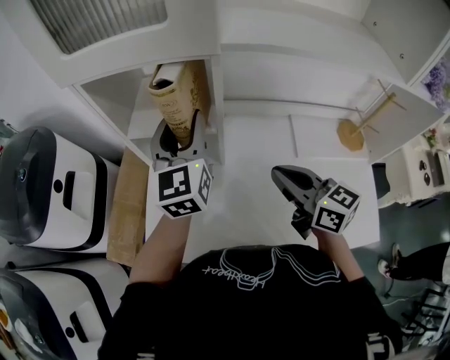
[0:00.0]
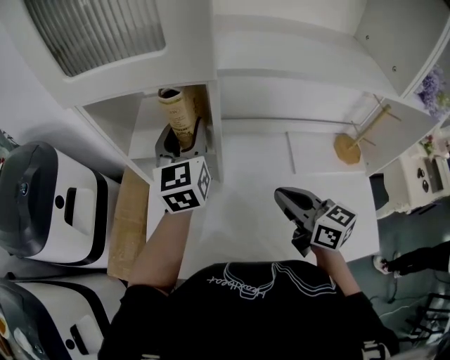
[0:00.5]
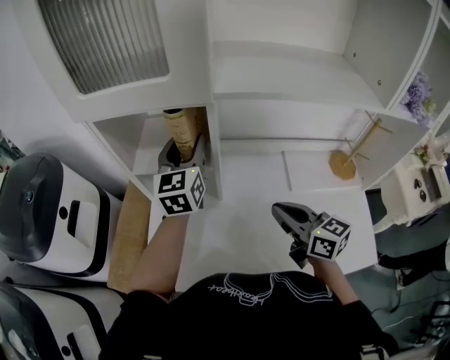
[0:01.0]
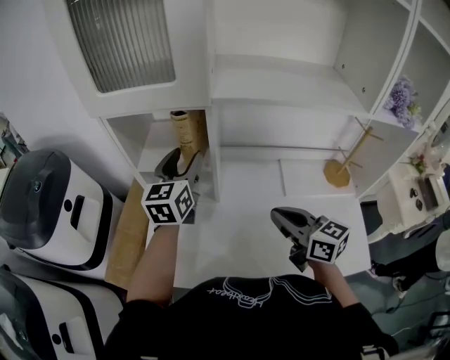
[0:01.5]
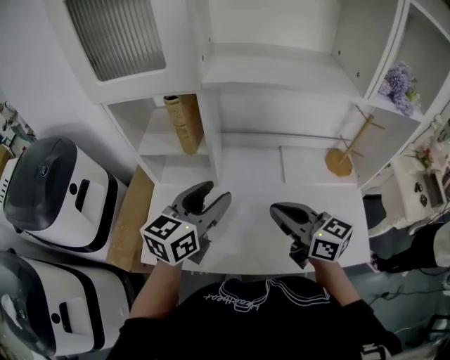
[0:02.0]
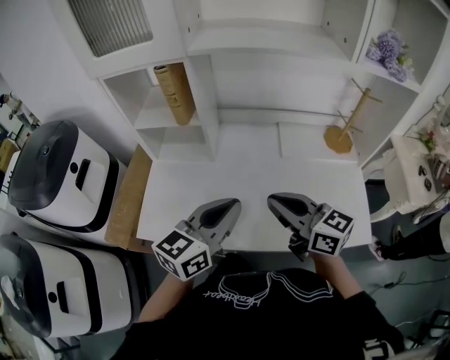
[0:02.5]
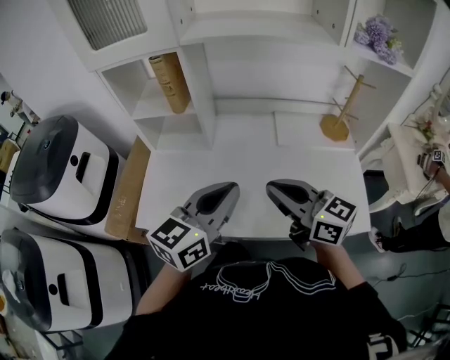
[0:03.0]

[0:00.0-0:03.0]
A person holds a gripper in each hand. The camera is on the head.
0:00.0 to 0:01.5: The right gripper moves backward, roughly 5 cm.
0:01.5 to 0:03.0: The right gripper heads backward, covering approximately 15 cm; the left gripper moves backward and to the right, some 35 cm, rotates approximately 30 degrees, and closes up.

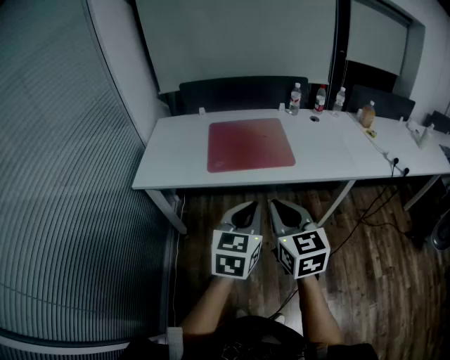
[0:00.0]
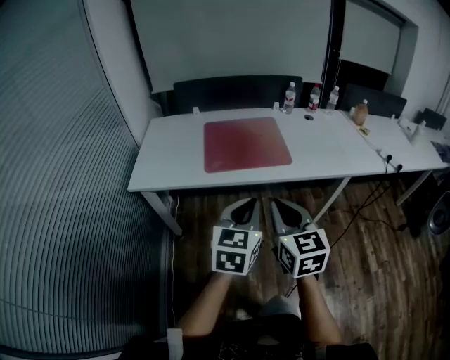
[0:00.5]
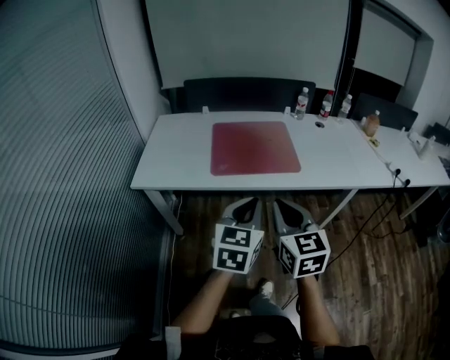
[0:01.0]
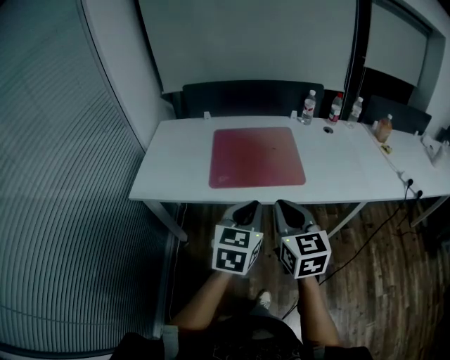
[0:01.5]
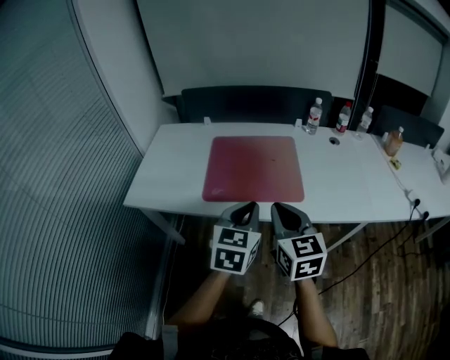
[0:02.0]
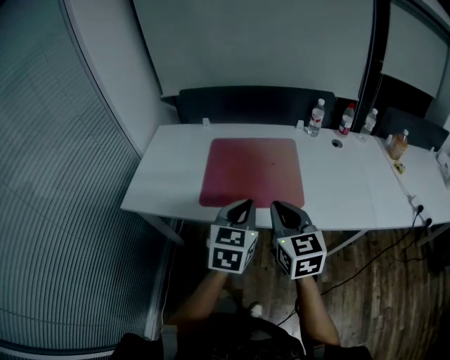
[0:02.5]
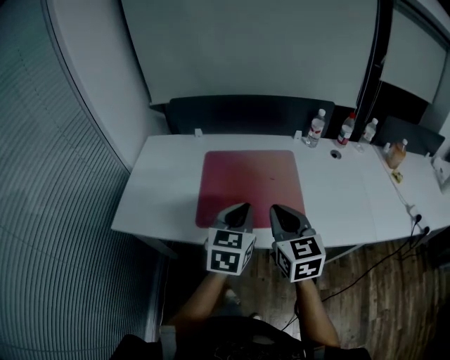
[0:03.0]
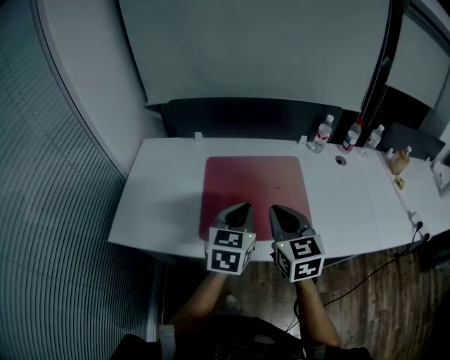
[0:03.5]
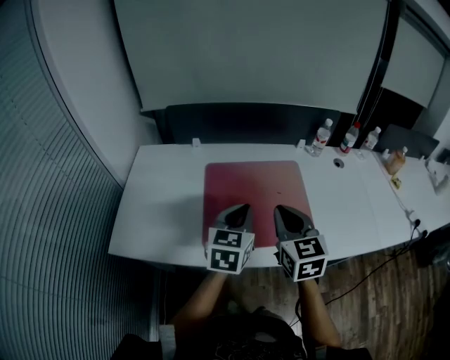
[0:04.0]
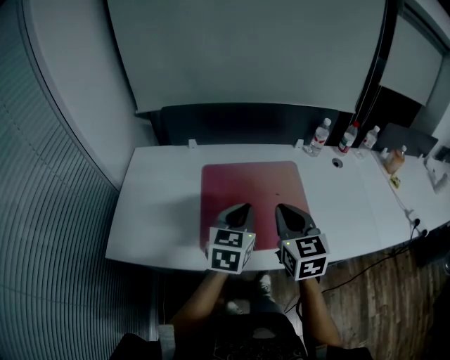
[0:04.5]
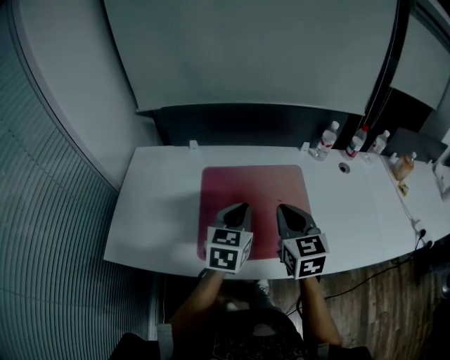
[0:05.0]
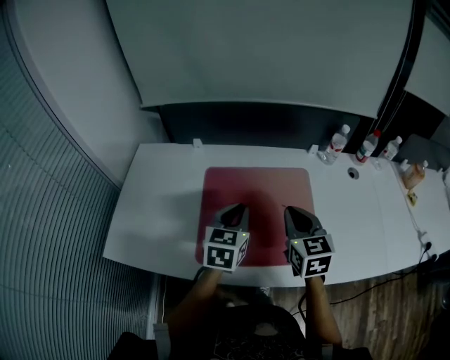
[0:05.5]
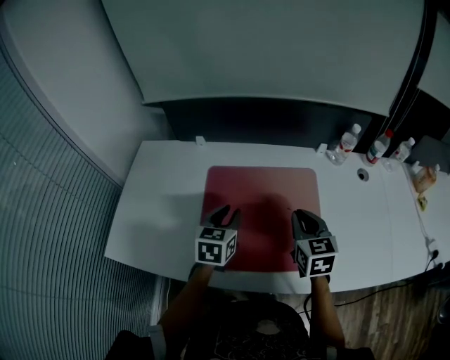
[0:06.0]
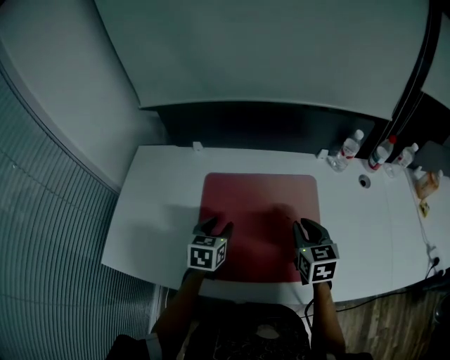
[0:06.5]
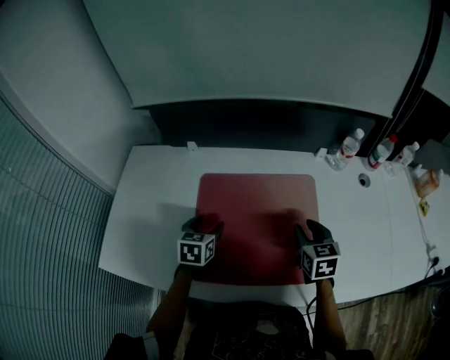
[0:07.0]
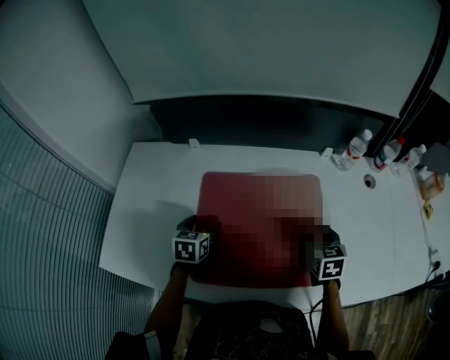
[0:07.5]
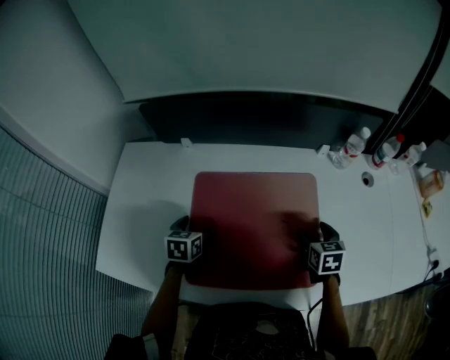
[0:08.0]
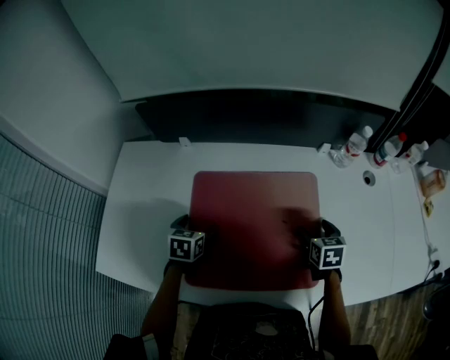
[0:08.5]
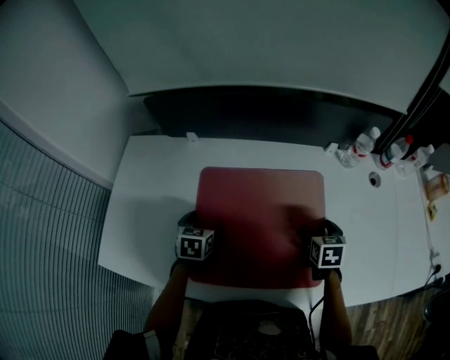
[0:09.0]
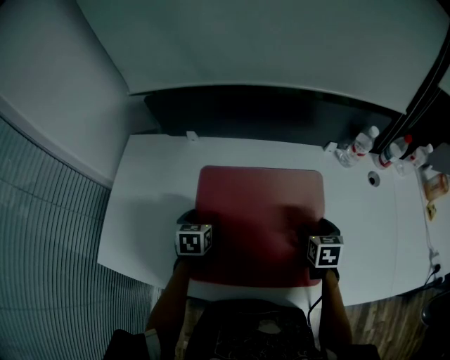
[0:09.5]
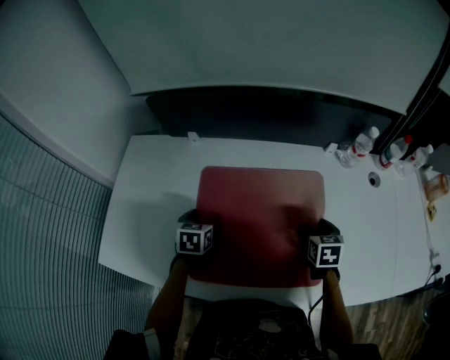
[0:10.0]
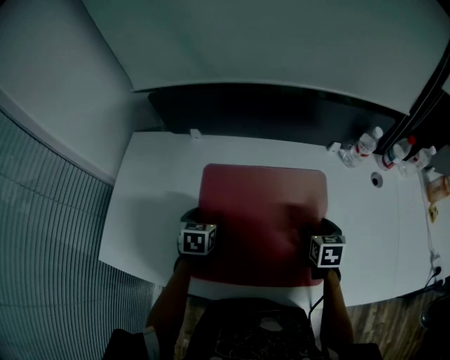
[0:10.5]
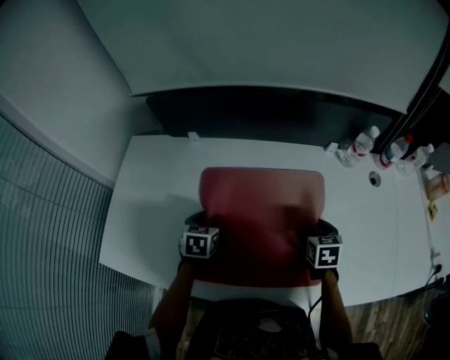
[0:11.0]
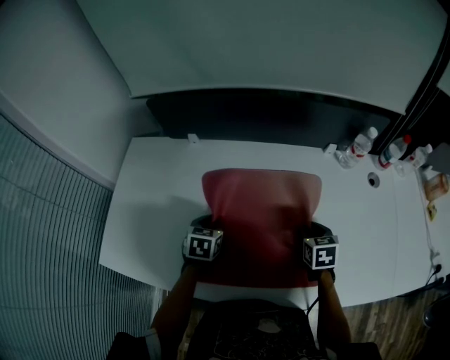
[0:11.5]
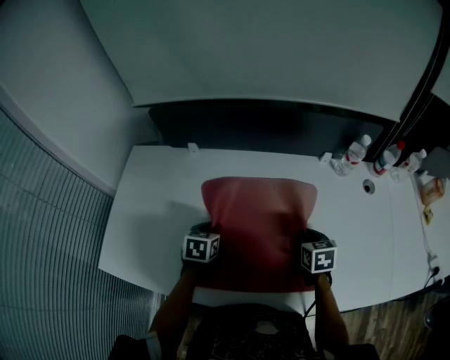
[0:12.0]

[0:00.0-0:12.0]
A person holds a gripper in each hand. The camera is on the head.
0:00.0 to 0:02.0: Both grippers move forward, roughly 20 cm.
0:02.0 to 0:04.0: Both grippers travel together forward, roughly 20 cm.
0:04.0 to 0:06.0: The right gripper moves forward, downward and to the right, approximately 20 cm; the left gripper moves forward and downward, approximately 15 cm.
0:06.0 to 0:08.0: The left gripper heads downward and to the left, covering about 15 cm, and opens up. The right gripper moves downward and to the right, approximately 15 cm, swivels some 20 degrees, and opens up.
0:08.0 to 0:10.0: The grippers move only a little.
0:10.0 to 0:12.0: The left gripper closes up. Meanwhile the right gripper closes.

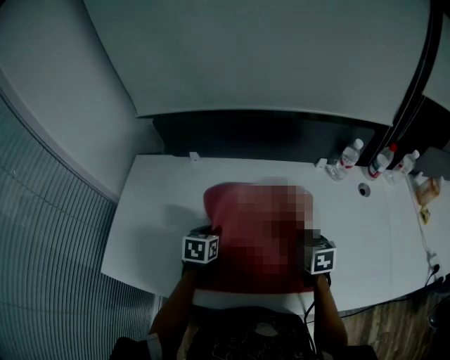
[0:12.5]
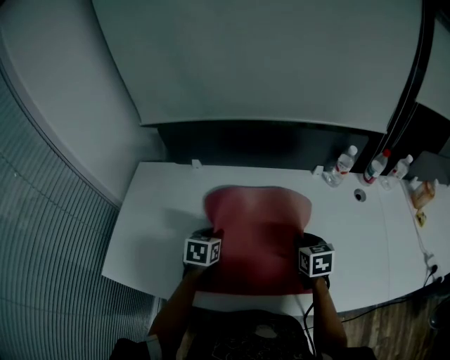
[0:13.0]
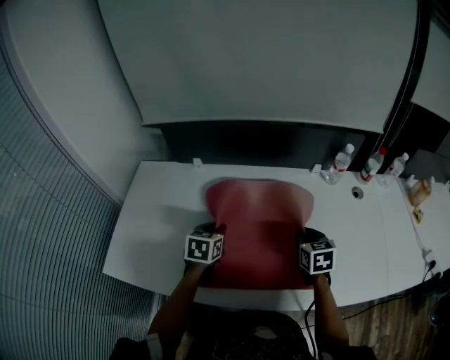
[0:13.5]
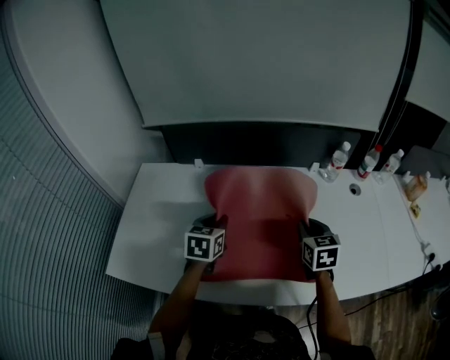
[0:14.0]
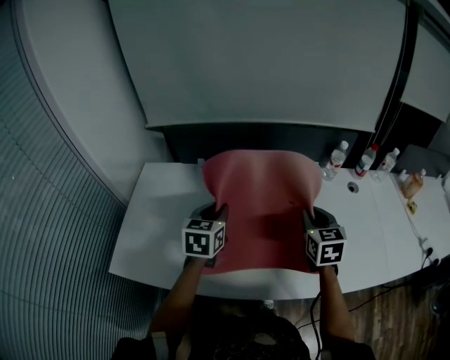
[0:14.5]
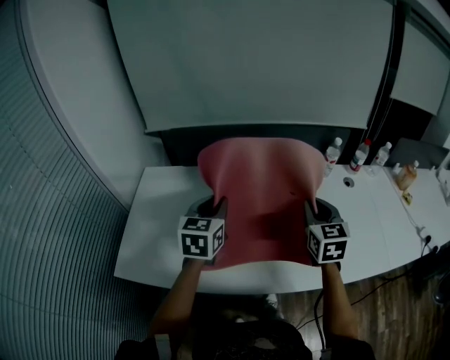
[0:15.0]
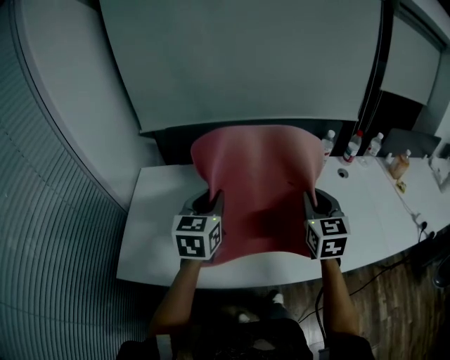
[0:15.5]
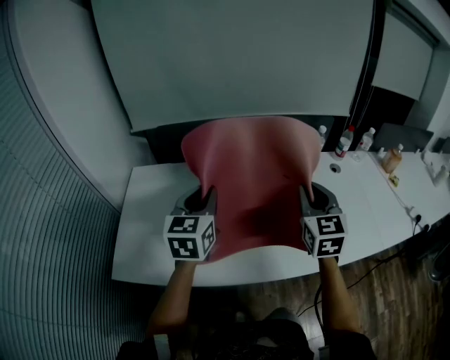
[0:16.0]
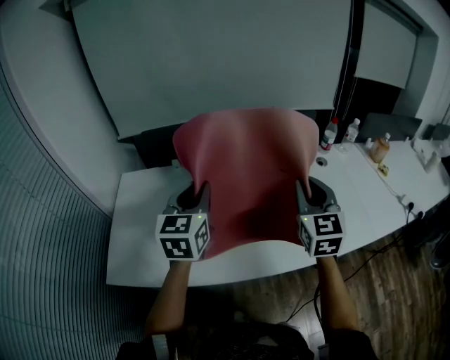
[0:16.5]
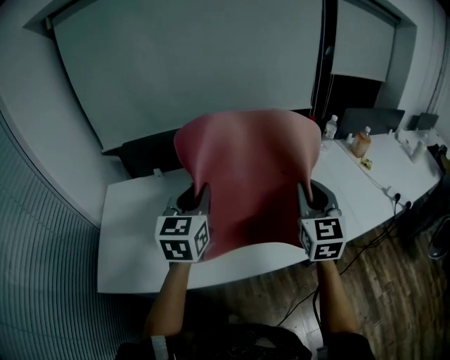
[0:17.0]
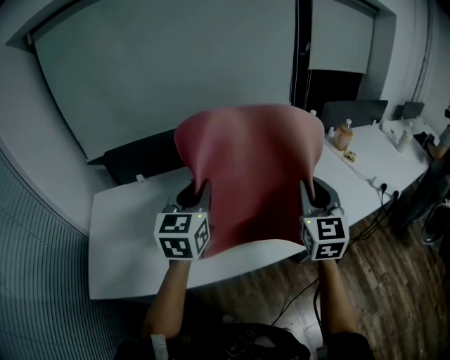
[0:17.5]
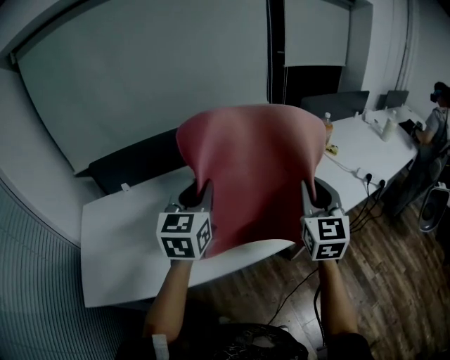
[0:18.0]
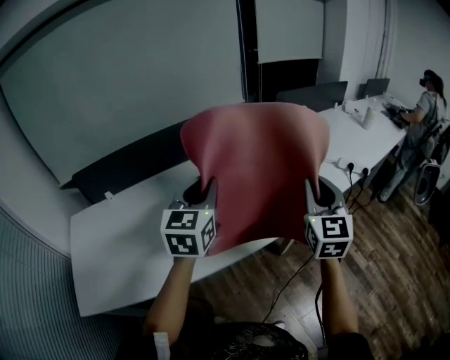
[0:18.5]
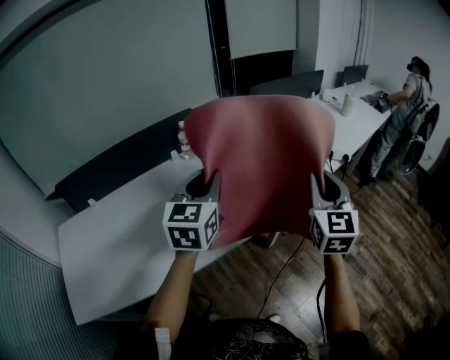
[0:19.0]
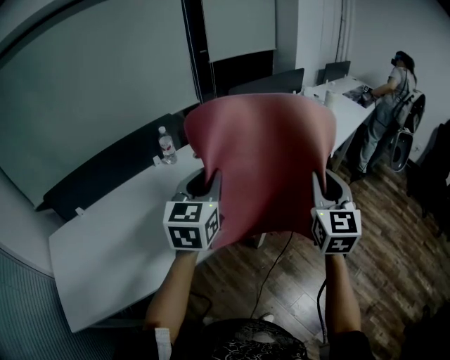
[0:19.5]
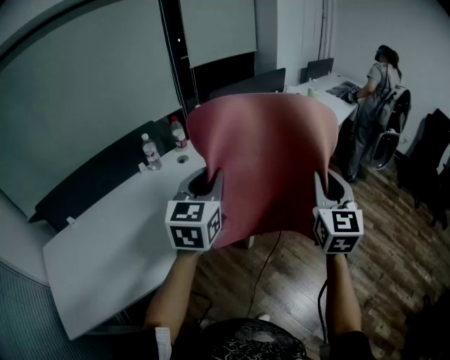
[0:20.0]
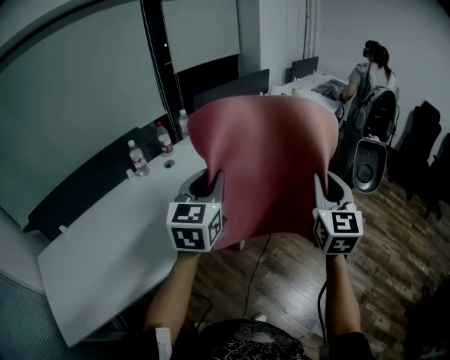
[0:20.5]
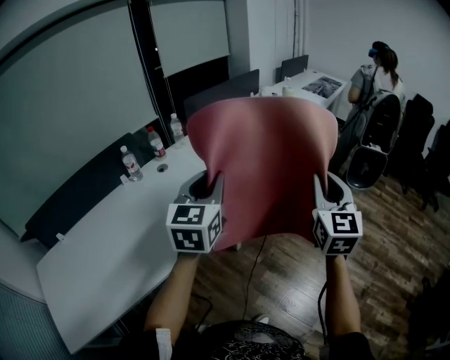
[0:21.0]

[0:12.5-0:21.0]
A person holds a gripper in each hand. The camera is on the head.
0:12.5 to 0:14.5: Both grippers move upward, about 20 cm. The left gripper changes its angle by approximately 20 degrees; the right gripper turns by some 20 degrees.
0:14.5 to 0:16.5: Both grippers move upward and backward, some 15 cm. The right gripper rotates roughly 20 degrees.
0:16.5 to 0:19.0: The right gripper changes place by approximately 40 cm, and turns by approximately 30 degrees. The left gripper changes place by approximately 40 cm, and turns by some 30 degrees.
0:19.0 to 0:21.0: Both grippers travel together to the right, about 20 cm.

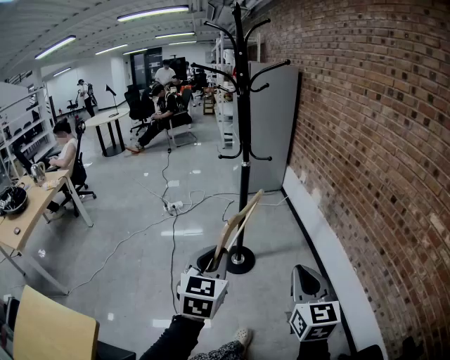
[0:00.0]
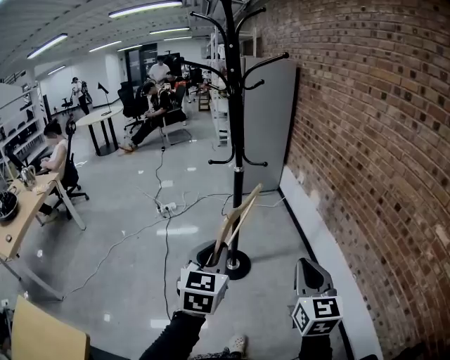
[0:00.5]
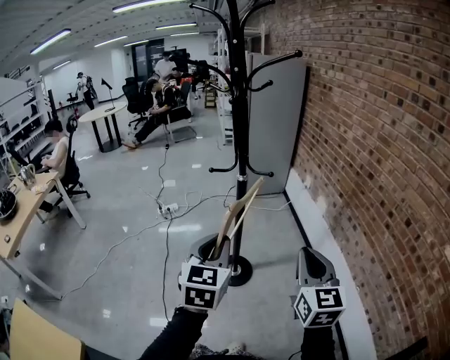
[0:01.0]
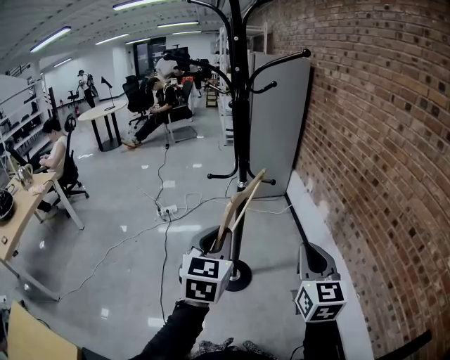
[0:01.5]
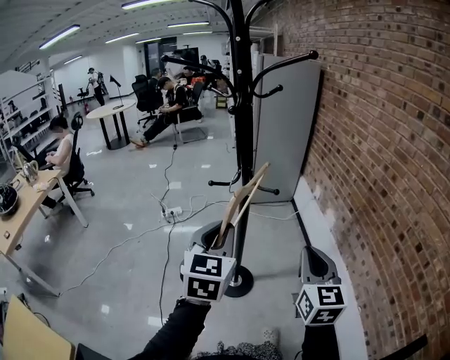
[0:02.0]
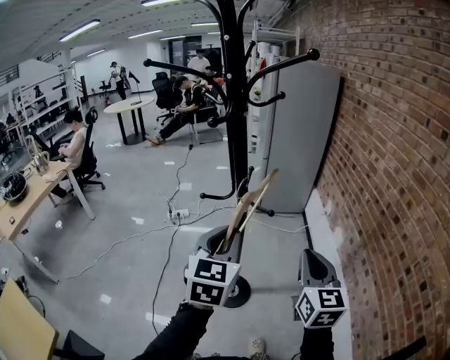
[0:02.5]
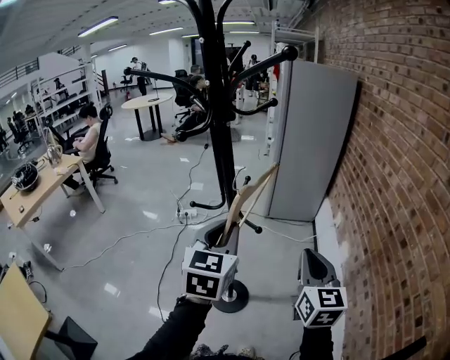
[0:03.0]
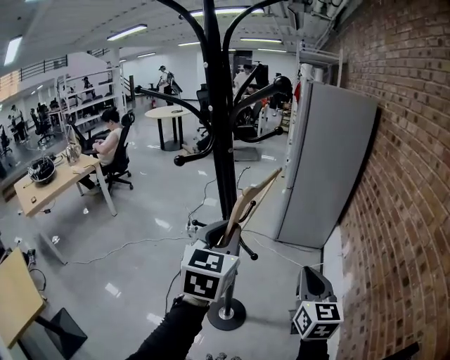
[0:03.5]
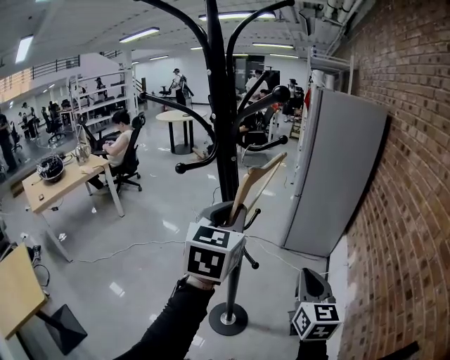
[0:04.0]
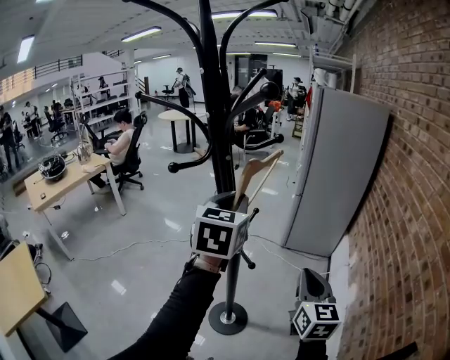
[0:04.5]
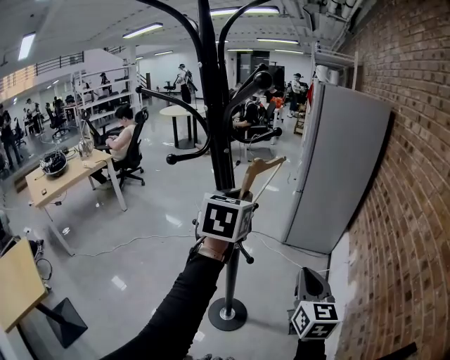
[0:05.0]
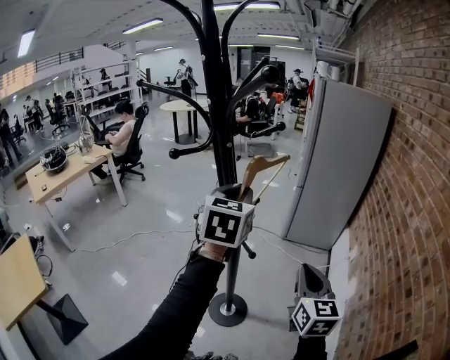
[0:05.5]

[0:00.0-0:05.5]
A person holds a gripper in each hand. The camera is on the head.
0:00.0 to 0:02.0: The grippers both shift forward by approximately 30 cm.
0:02.0 to 0:03.5: The grippers both shift forward and to the right by about 25 cm. The right gripper rotates some 20 degrees.
0:03.5 to 0:05.5: The left gripper travels forward by roughly 10 cm.
